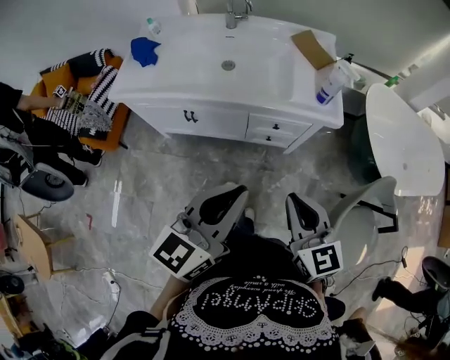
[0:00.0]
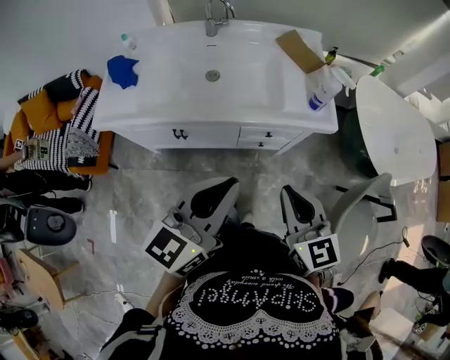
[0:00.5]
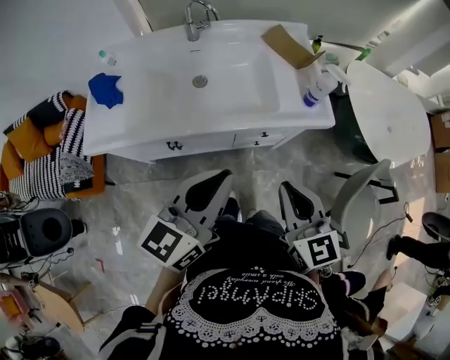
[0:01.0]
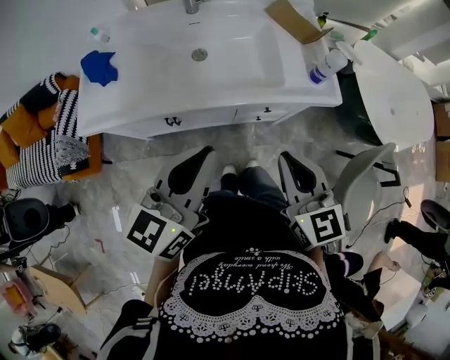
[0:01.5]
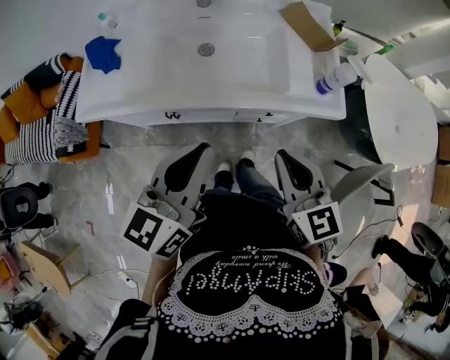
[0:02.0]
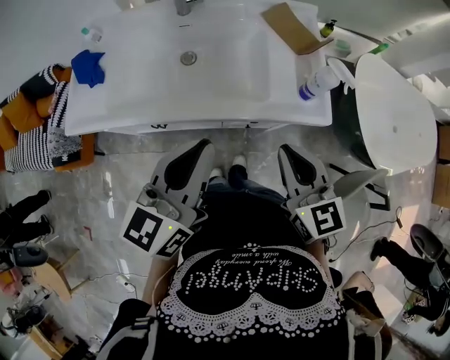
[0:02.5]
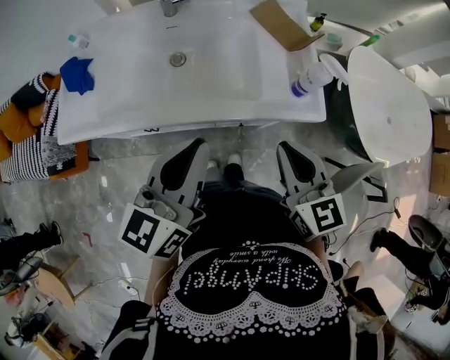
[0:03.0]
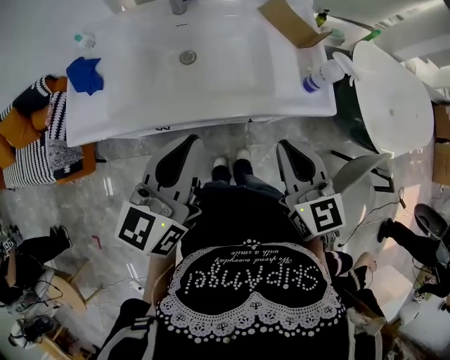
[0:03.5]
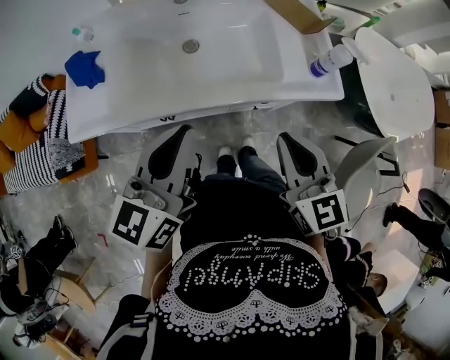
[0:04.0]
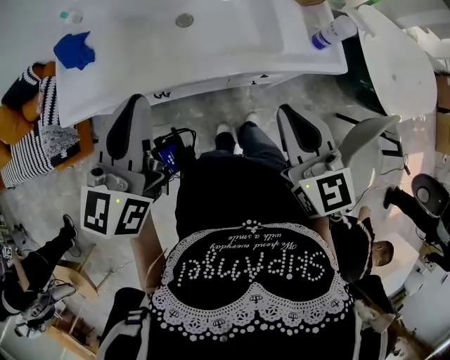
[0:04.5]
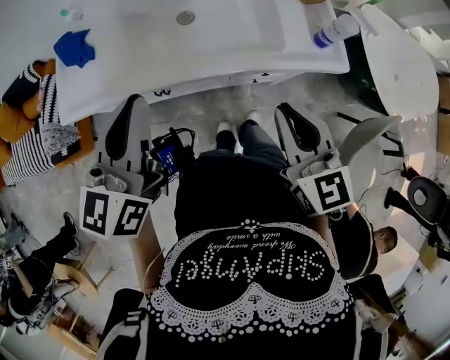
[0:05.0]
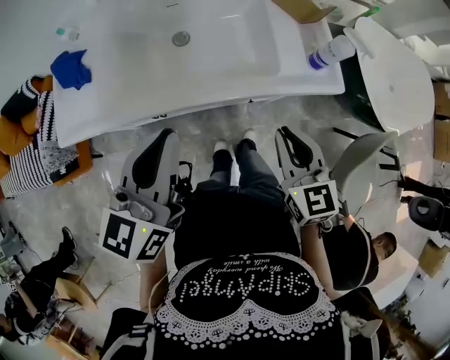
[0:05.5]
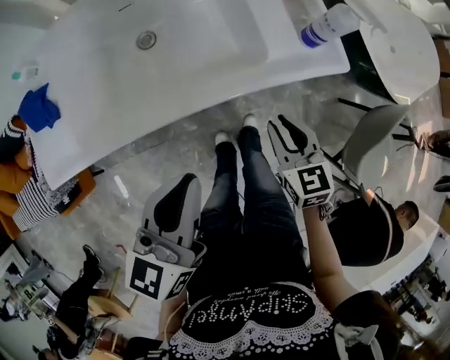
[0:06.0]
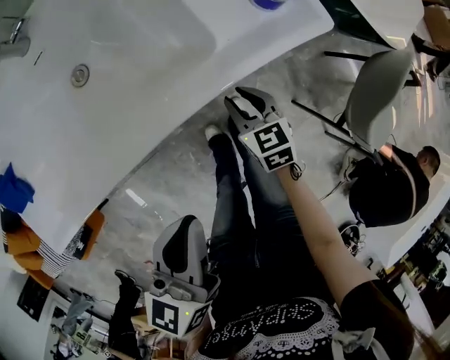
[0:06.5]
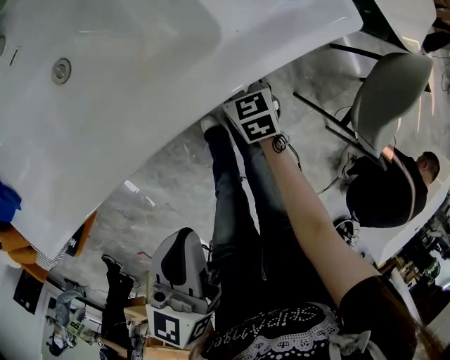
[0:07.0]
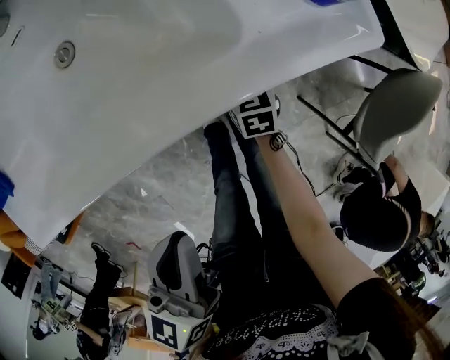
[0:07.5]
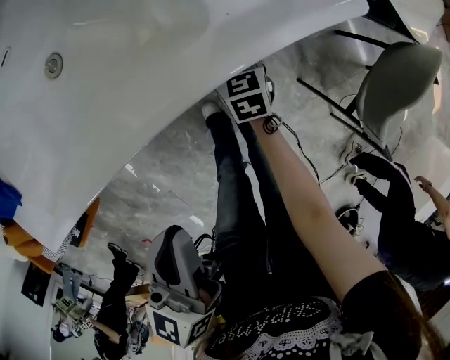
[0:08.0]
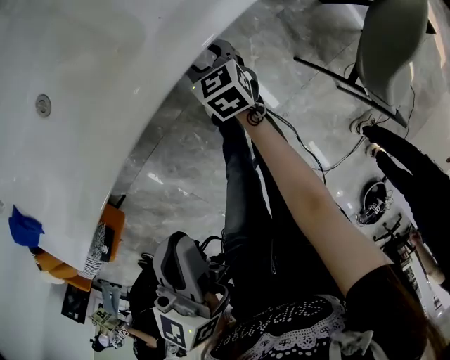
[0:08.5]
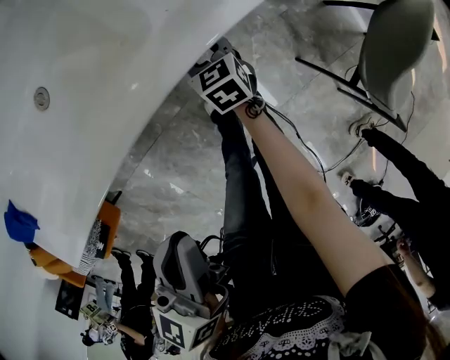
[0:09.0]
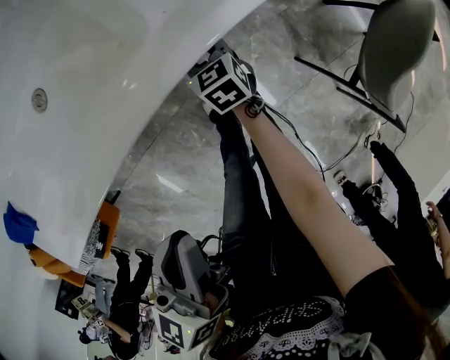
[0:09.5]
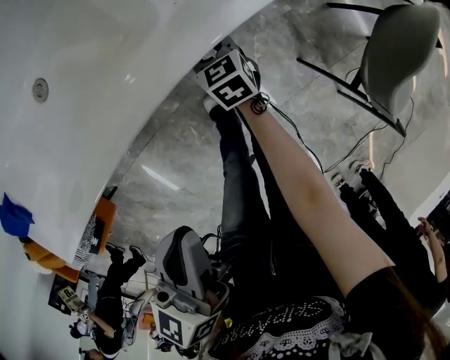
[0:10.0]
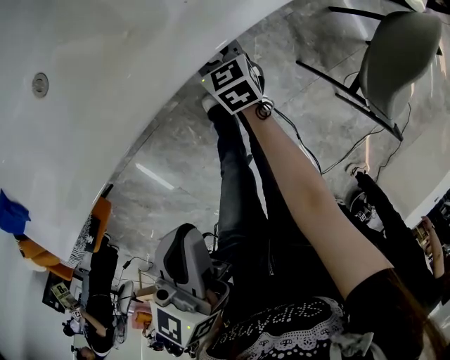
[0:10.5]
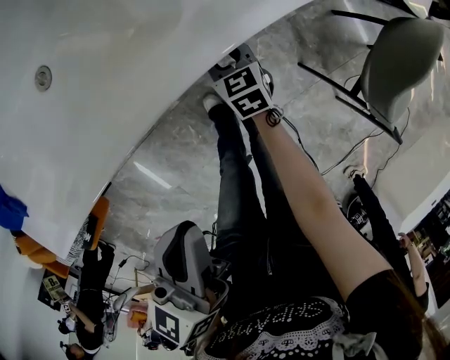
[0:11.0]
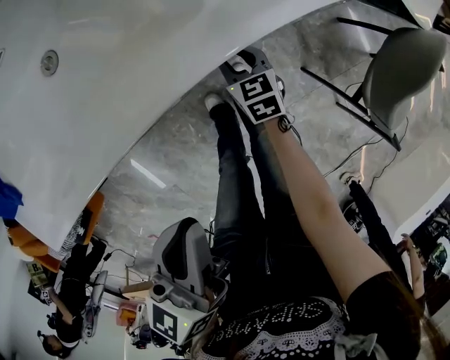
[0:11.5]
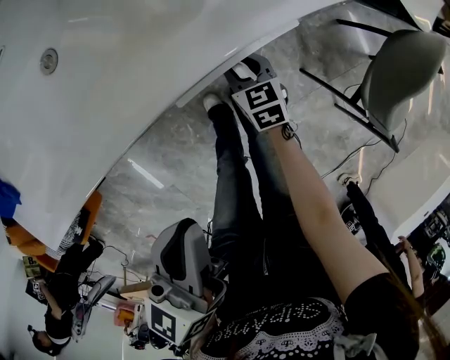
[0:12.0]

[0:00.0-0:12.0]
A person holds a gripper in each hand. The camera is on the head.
0:00.0 to 0:02.0: Both grippers move forward and to the left, about 20 cm.
0:02.0 to 0:04.0: The right gripper goes to the right and returns, some 10 cm each way, while the left gripper travels forward by approximately 5 cm.
0:04.0 to 0:06.0: The right gripper moves downward, about 20 cm, while the left gripper travels downward by roughly 10 cm.
0:06.0 to 0:08.0: The right gripper is displaced downward and forward by roughly 30 cm, and opens its fingers. The left gripper is displaced downward by roughly 10 cm.
0:08.0 to 0:10.0: The grippers move only a little.
0:10.0 to 0:12.0: The right gripper shifts about 5 cm backward.

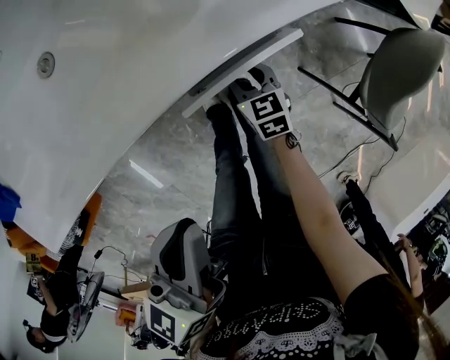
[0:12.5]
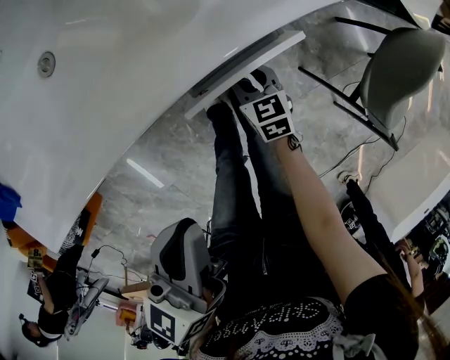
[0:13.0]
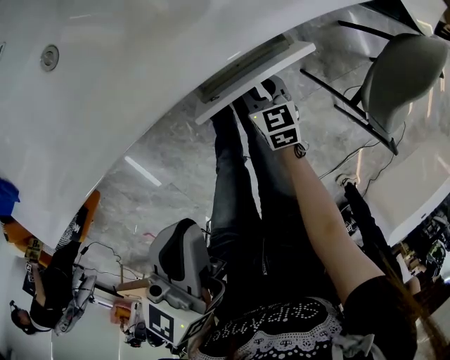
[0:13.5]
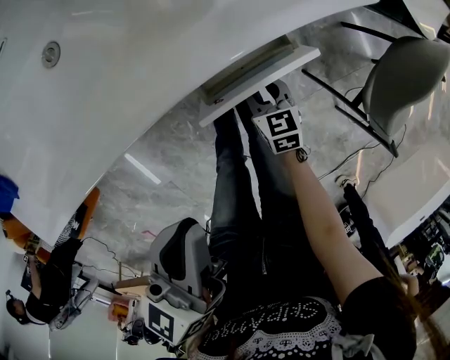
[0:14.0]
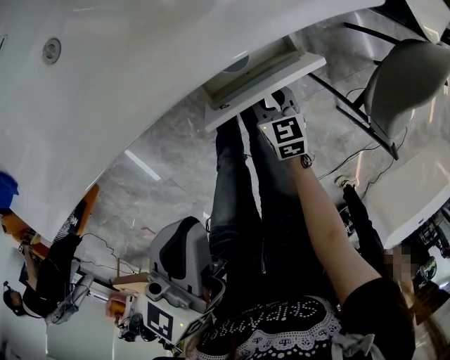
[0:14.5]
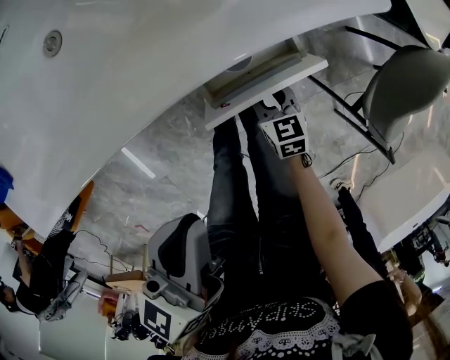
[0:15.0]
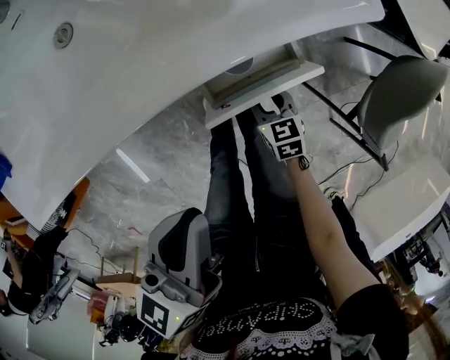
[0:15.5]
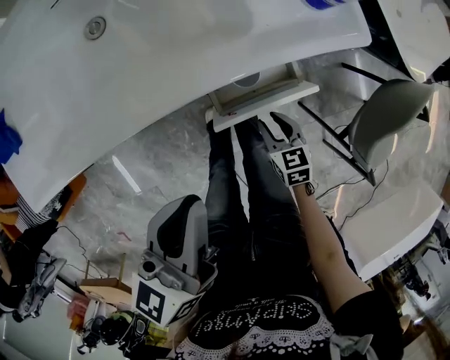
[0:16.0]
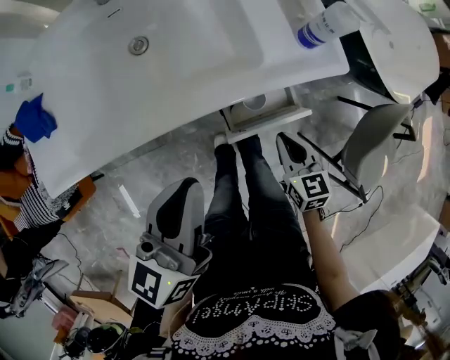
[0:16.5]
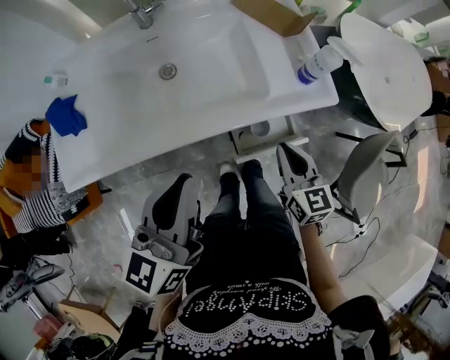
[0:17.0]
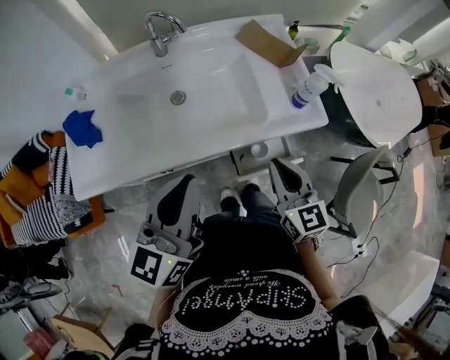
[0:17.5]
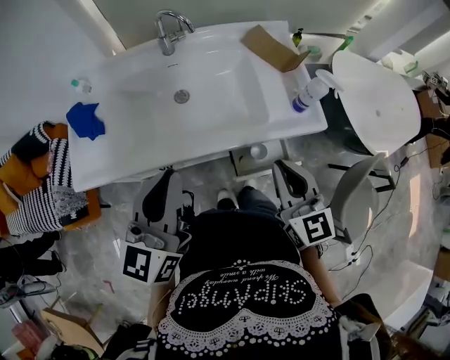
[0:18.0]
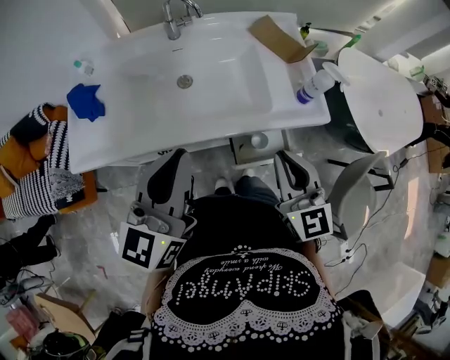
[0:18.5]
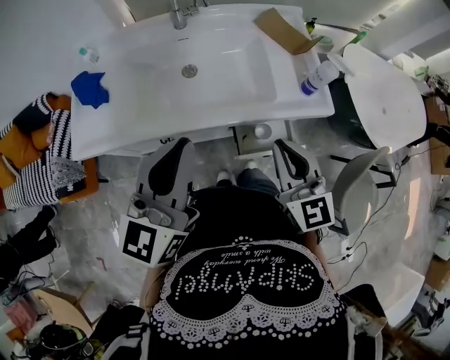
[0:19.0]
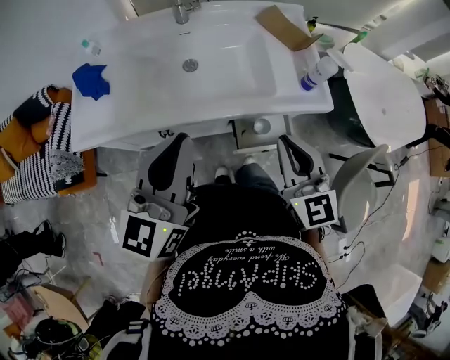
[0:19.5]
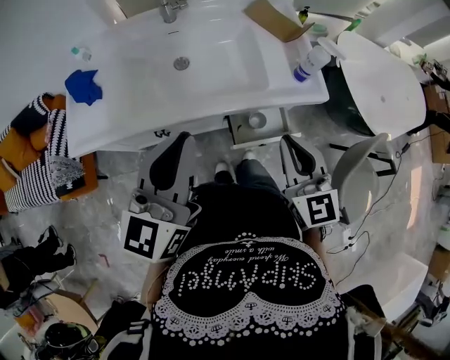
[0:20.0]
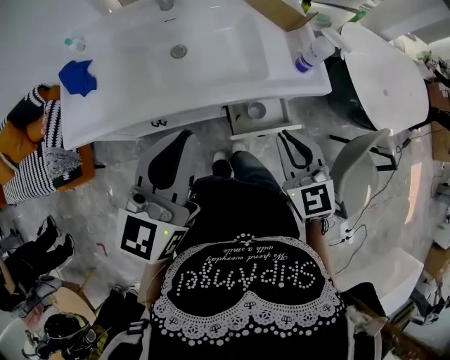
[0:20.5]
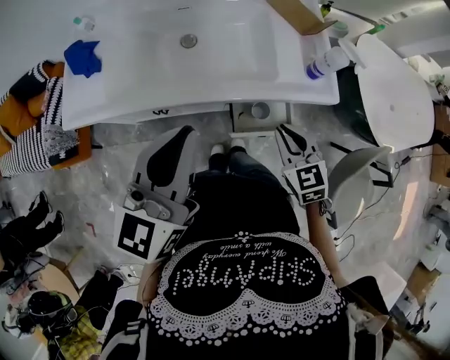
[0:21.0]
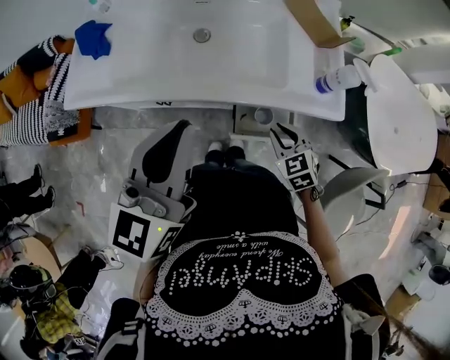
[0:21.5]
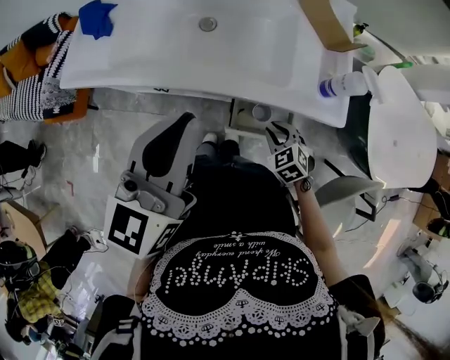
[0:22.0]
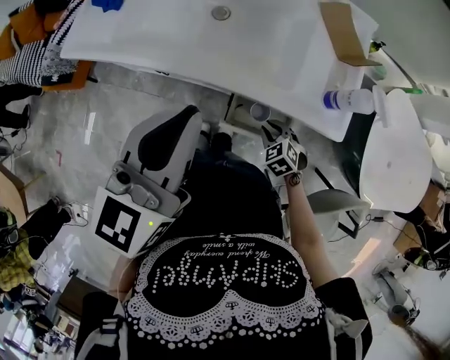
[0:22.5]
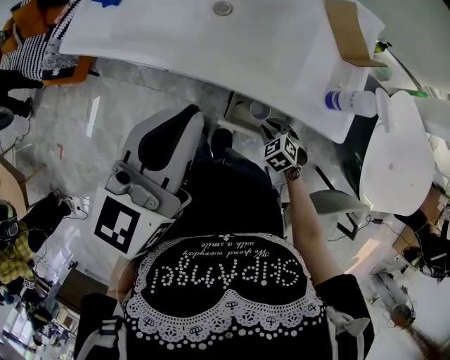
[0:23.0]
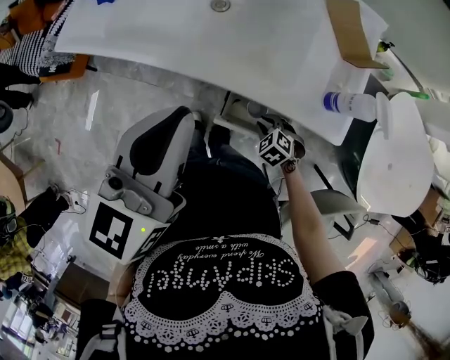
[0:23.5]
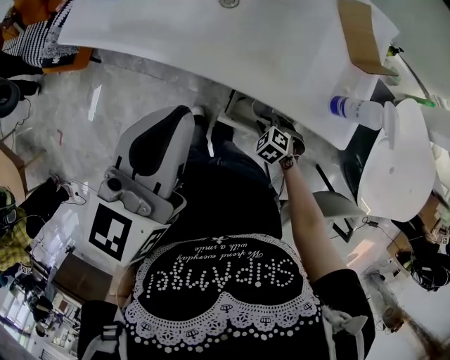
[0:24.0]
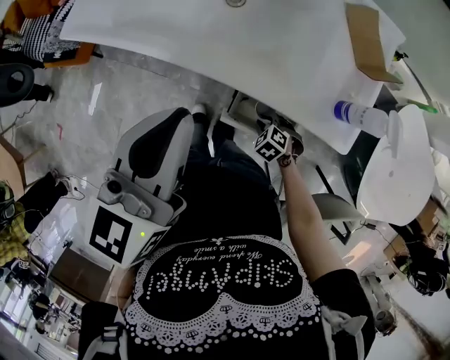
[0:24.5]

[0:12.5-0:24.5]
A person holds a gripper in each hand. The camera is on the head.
0:12.5 to 0:14.5: The right gripper shifts about 5 cm backward.
0:14.5 to 0:16.5: The left gripper moves upward, some 10 cm. Meanwhile the right gripper shifts roughly 20 cm upward, and closes its fingers.
0:16.5 to 0:18.5: The right gripper shifts some 25 cm upward, and swivels about 30 degrees. Meanwhile the left gripper goes about 15 cm upward and to the left, and turns by some 20 degrees.
0:18.5 to 0:20.5: The right gripper ends up about 5 cm from where it was.
0:20.5 to 0:22.5: The left gripper ends up roughly 5 cm from where it was, while the right gripper moves downward, some 30 cm, and points its fingers about 40 degrees further downward.
0:22.5 to 0:24.5: The right gripper travels downward by roughly 10 cm, and rotates roughly 20 degrees.

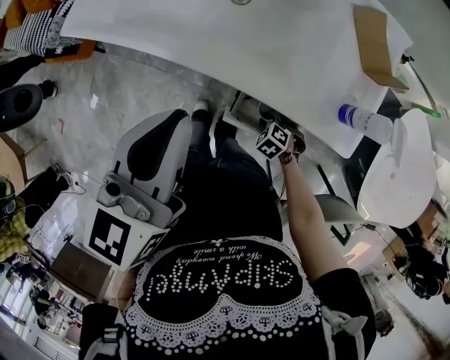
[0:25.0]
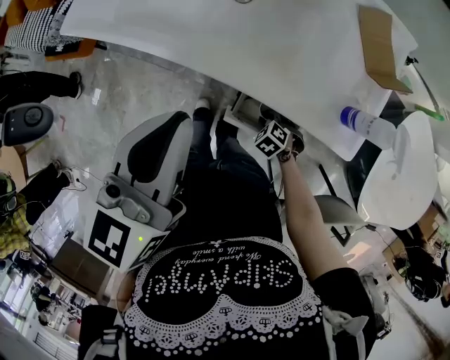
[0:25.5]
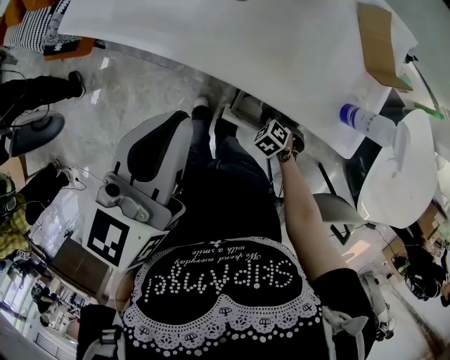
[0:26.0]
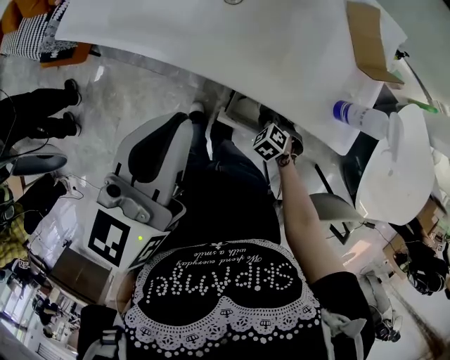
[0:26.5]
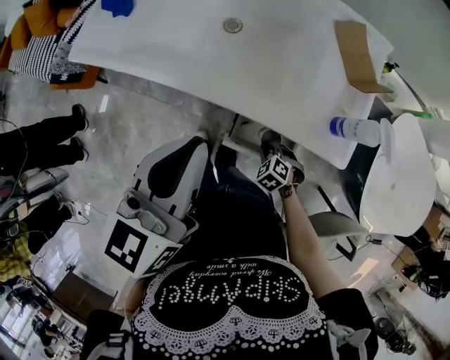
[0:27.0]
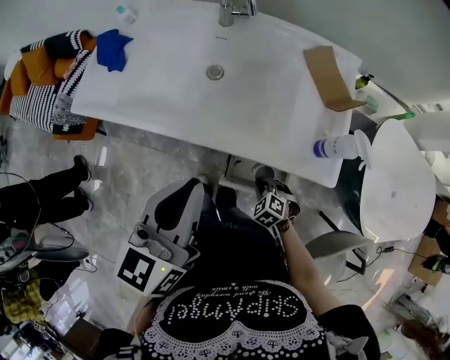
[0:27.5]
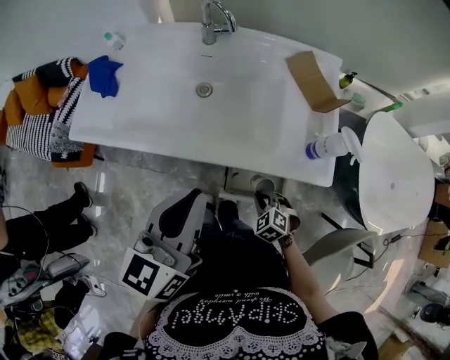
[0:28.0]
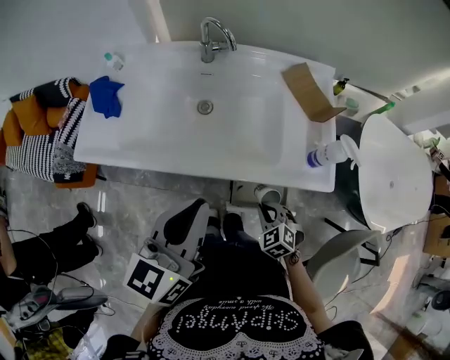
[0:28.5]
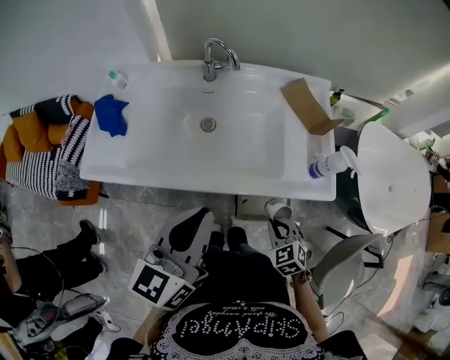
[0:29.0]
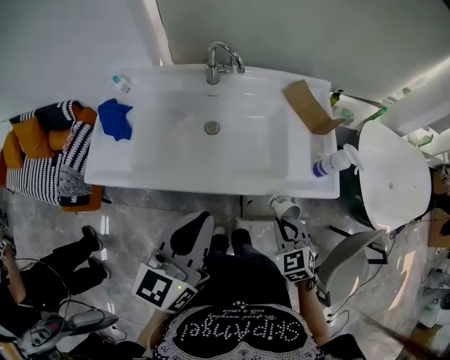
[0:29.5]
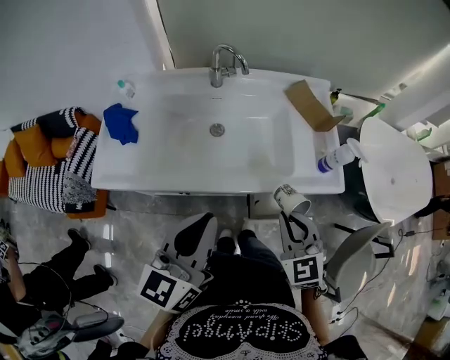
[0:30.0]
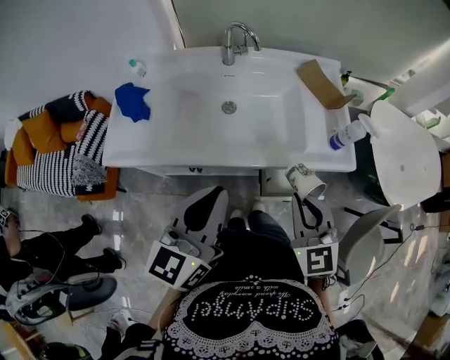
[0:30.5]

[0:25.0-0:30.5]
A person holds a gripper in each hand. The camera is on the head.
0:25.0 to 0:27.0: The grippers stay close to where they were, moving slightly.
0:27.0 to 0:28.5: The right gripper heads upward, covering some 15 cm, and rotates approximately 30 degrees.
0:28.5 to 0:30.5: The left gripper moves to the left, about 10 cm, while the right gripper goes approximately 25 cm upward, and tips its fingers upward by approximately 30 degrees.
